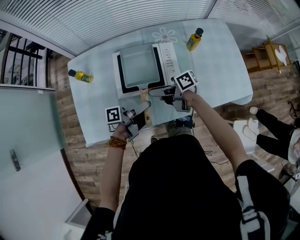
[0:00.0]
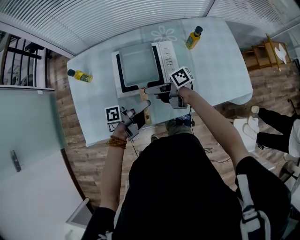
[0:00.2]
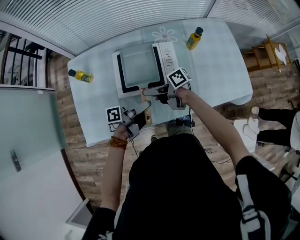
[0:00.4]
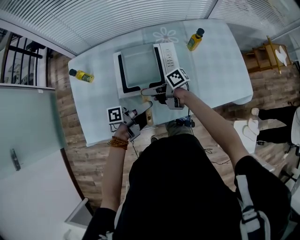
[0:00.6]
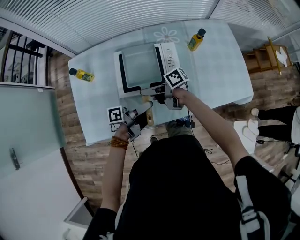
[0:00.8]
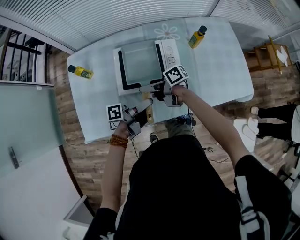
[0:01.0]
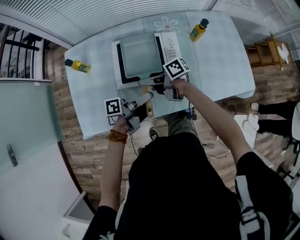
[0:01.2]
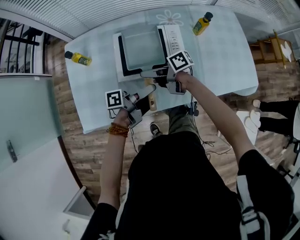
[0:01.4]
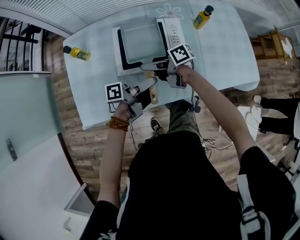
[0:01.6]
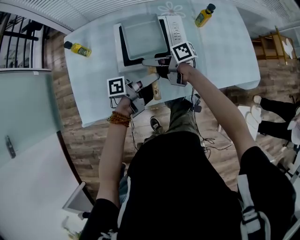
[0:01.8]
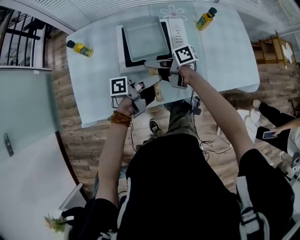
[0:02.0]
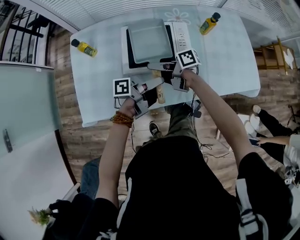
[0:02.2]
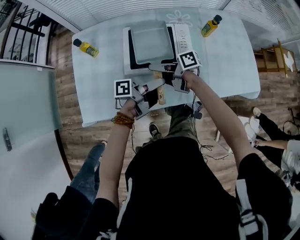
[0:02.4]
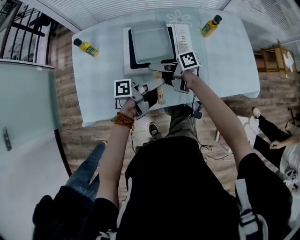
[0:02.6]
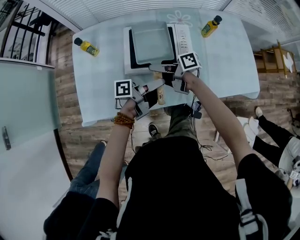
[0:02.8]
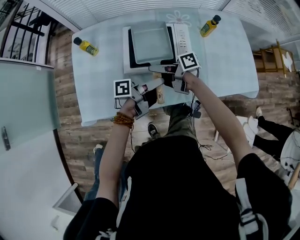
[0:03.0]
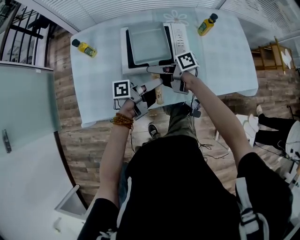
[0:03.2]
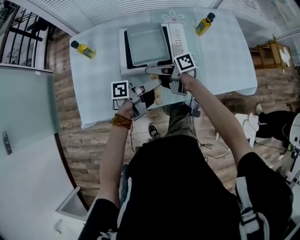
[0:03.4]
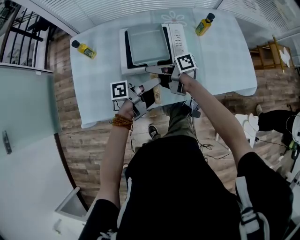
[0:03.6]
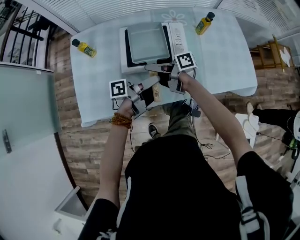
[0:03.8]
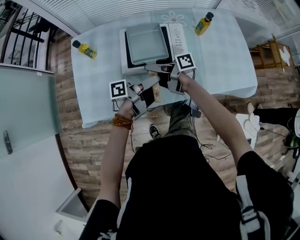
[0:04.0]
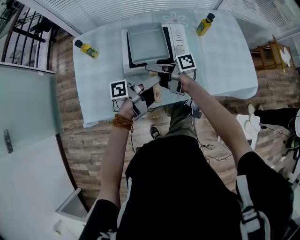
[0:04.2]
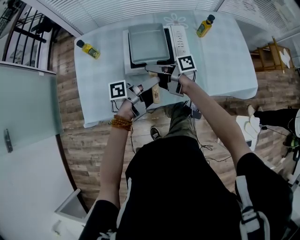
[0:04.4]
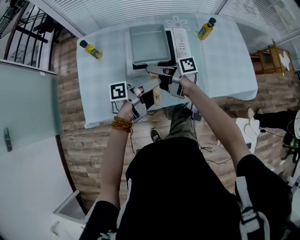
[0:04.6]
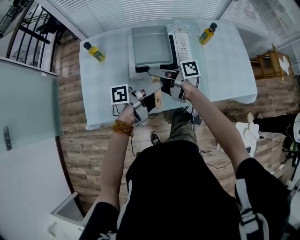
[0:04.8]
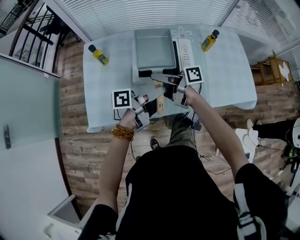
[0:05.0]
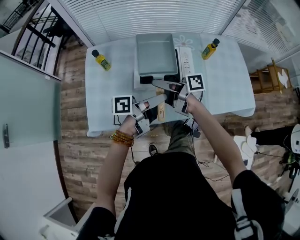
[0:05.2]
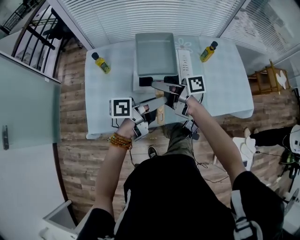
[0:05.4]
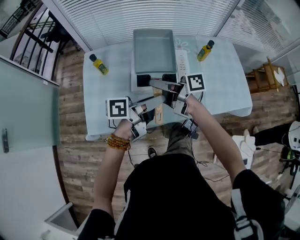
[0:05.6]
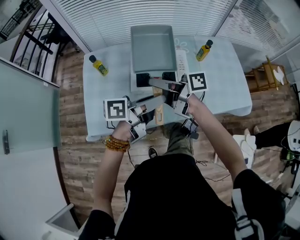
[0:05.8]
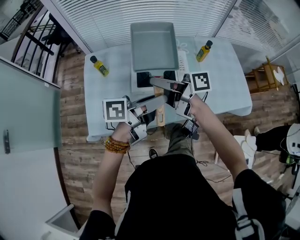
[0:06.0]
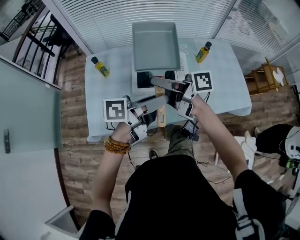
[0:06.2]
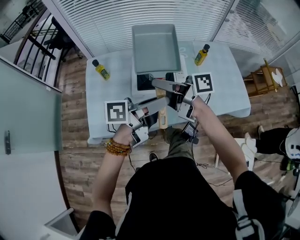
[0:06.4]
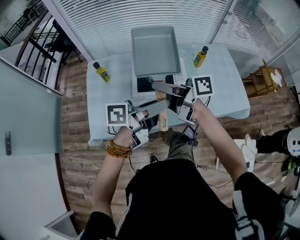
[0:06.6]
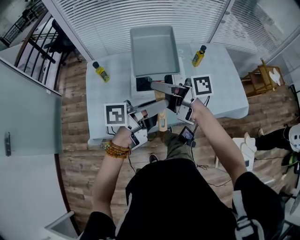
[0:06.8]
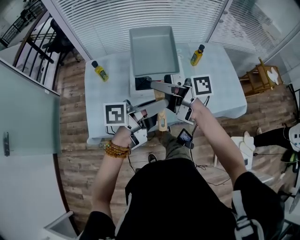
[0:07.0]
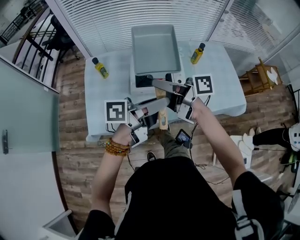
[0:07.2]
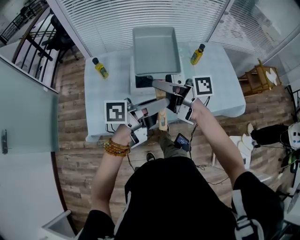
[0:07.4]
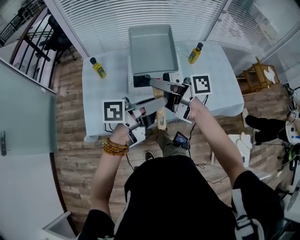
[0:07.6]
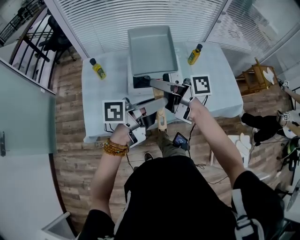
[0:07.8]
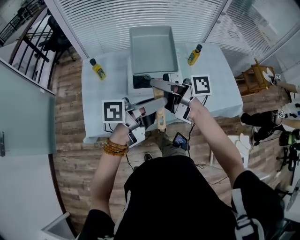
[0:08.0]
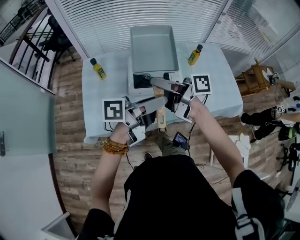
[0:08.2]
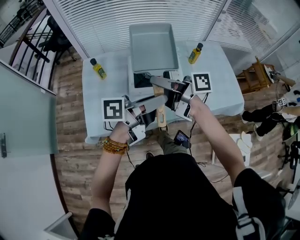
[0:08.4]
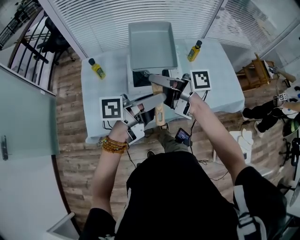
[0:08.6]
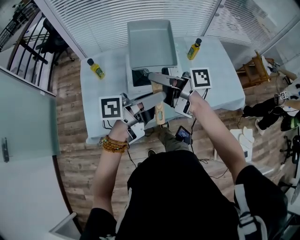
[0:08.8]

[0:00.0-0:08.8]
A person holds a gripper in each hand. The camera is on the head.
0:00.0 to 0:01.4: The right gripper changes place by about 5 cm.
0:01.4 to 0:04.4: The grippers make only small movements.
0:04.4 to 0:05.8: The grippers both shift upward by roughly 15 cm.
0:05.8 to 0:07.4: Both grippers travel together upward, approximately 5 cm.
0:07.4 to 0:08.8: Neither gripper changes place.

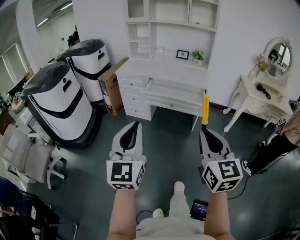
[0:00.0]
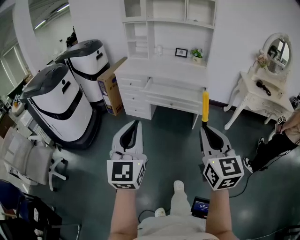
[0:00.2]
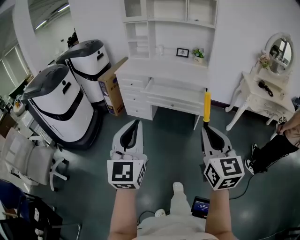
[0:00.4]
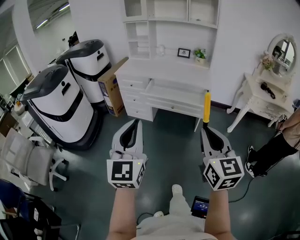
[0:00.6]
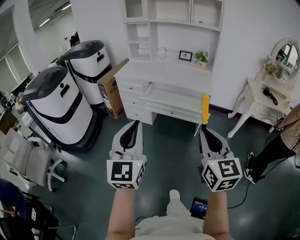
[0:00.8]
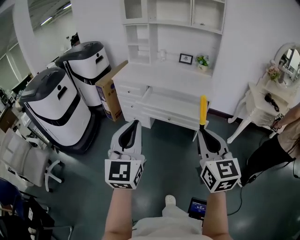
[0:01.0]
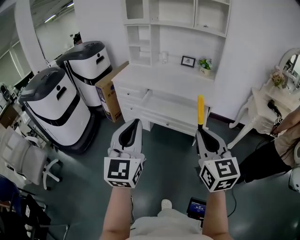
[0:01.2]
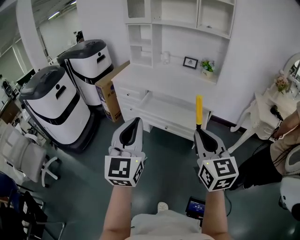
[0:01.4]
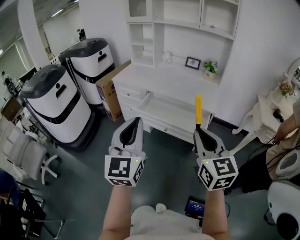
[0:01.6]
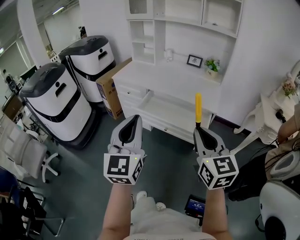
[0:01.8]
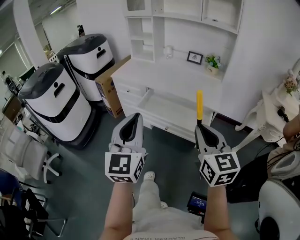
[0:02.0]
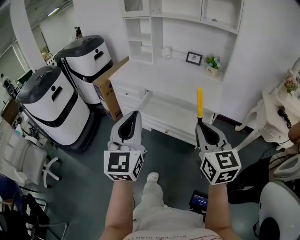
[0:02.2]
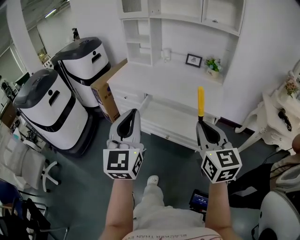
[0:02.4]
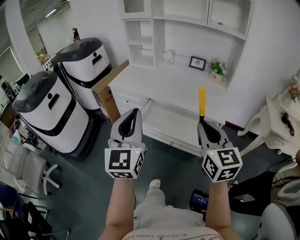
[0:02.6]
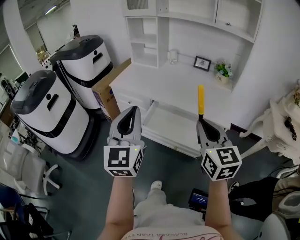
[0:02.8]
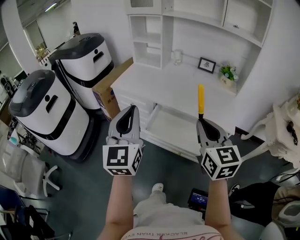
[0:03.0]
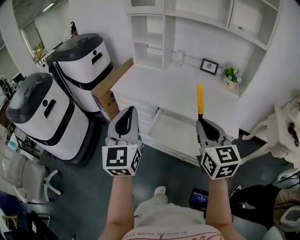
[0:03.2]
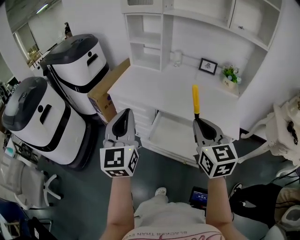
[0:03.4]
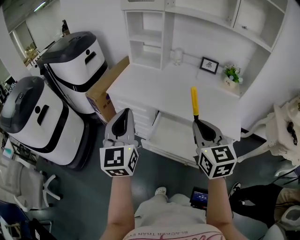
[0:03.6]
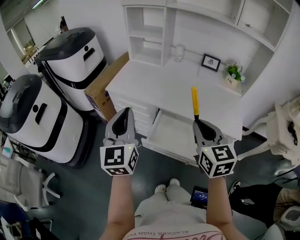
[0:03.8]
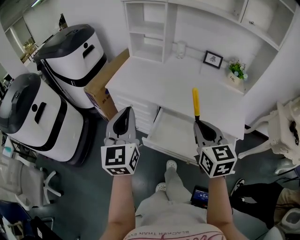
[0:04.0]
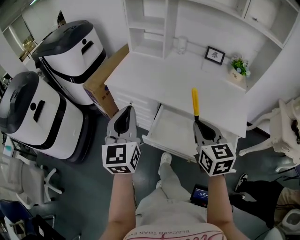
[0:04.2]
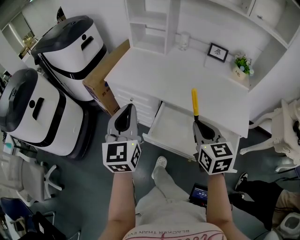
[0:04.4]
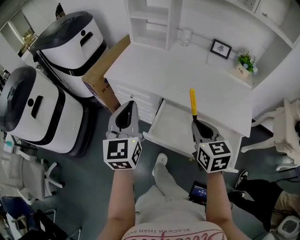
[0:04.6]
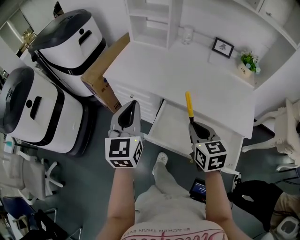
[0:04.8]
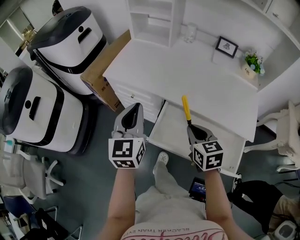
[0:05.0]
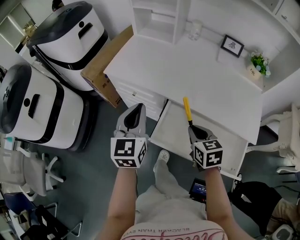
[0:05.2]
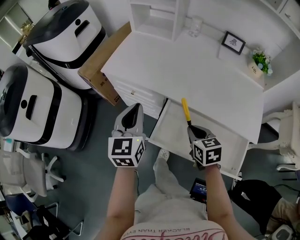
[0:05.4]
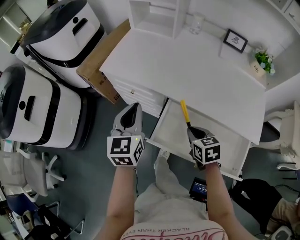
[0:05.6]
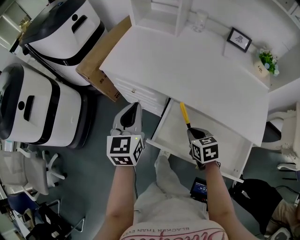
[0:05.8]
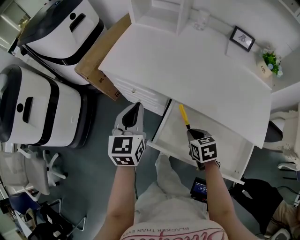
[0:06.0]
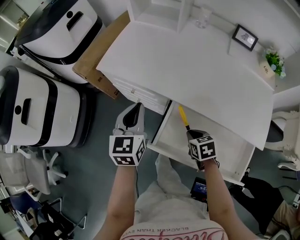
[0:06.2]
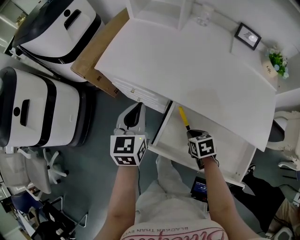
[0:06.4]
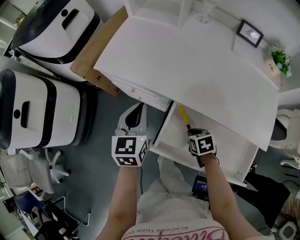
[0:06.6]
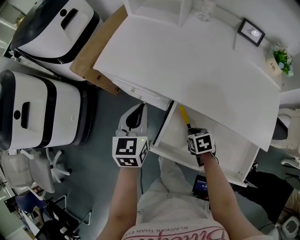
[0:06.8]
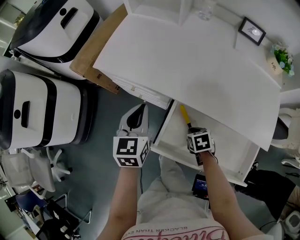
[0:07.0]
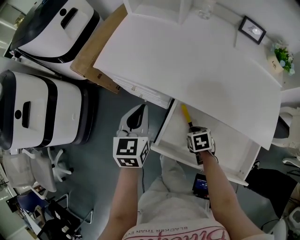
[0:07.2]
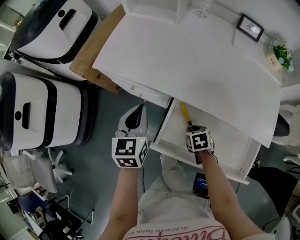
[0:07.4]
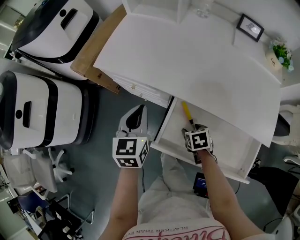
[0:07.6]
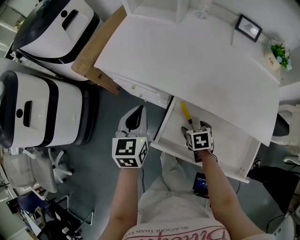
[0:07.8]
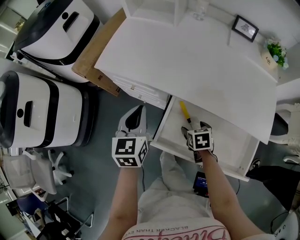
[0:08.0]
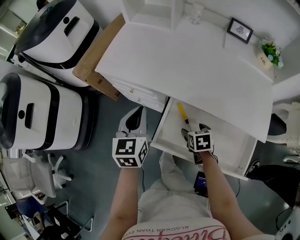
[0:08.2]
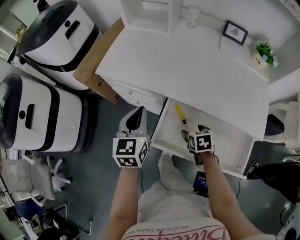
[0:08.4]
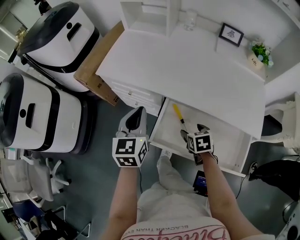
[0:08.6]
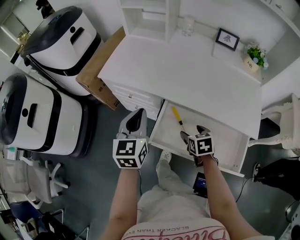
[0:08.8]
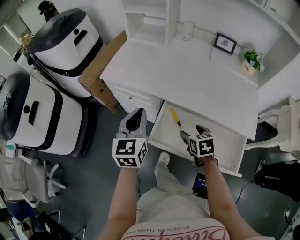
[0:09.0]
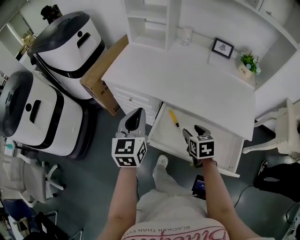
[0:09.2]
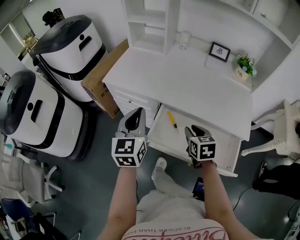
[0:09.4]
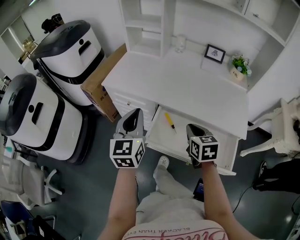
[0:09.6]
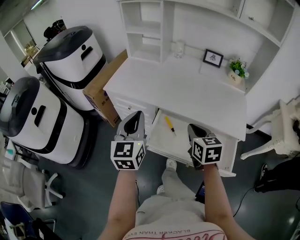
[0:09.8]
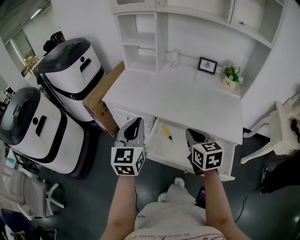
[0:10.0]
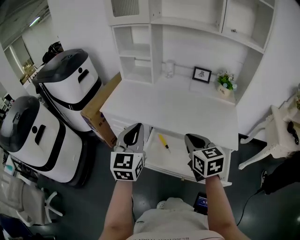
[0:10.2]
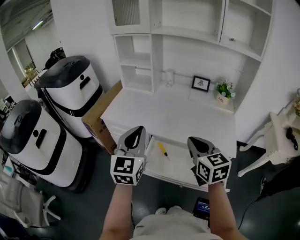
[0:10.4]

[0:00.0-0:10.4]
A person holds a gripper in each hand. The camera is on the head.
0:00.0 to 0:01.4: The left gripper heads forward and to the right, covering some 25 cm, while the right gripper travels forward by some 25 cm.
0:01.4 to 0:03.0: The two grippers go about 30 cm forward.
0:03.0 to 0:04.4: The grippers both shift forward and downward by roughly 20 cm.
0:04.4 to 0:06.0: The left gripper travels downward and forward by roughly 20 cm; the right gripper travels downward by some 25 cm, and angles its fingers downward, by about 30 degrees.
0:06.0 to 0:07.4: The left gripper changes place by some 5 cm; the right gripper goes roughly 10 cm downward.
0:07.4 to 0:09.0: The left gripper shifts some 10 cm upward and backward, while the right gripper shifts about 15 cm upward, turns by some 20 degrees, and opens.
0:09.0 to 0:10.4: The right gripper shifts approximately 25 cm upward, points its fingers about 30 degrees further upward, and closes its fingers. Meanwhile the left gripper goes some 15 cm upward.

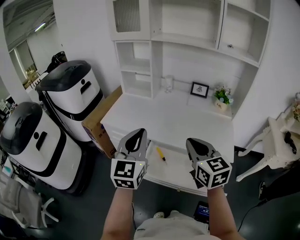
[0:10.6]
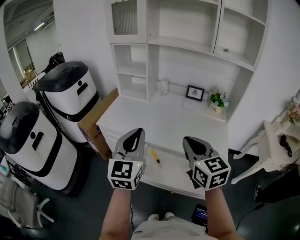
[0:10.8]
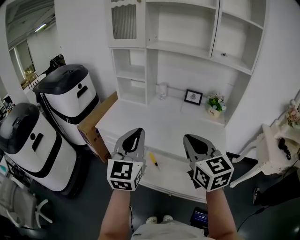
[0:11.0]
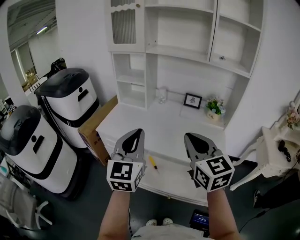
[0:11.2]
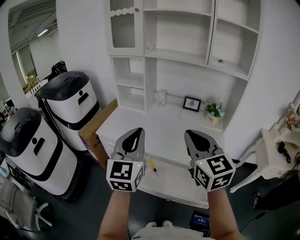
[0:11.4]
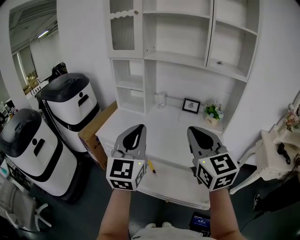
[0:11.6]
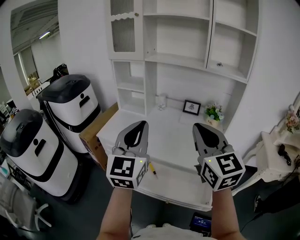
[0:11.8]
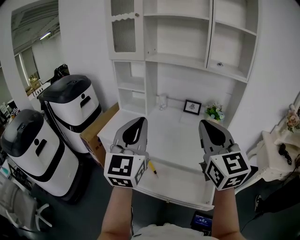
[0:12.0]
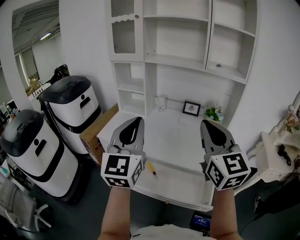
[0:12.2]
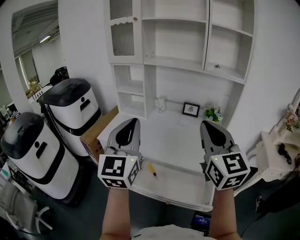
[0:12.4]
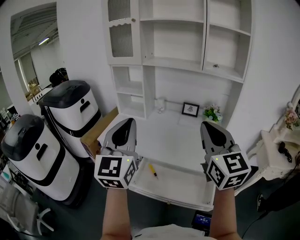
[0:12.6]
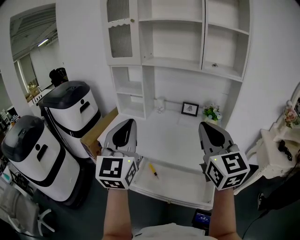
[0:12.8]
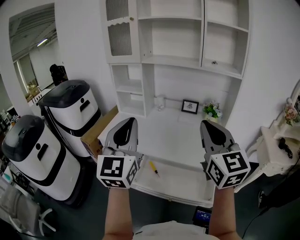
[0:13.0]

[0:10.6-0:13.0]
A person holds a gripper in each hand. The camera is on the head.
0:10.6 to 0:11.8: The left gripper goes some 15 cm upward and to the right. Meanwhile the right gripper moves upward, roughly 15 cm, and changes its angle by some 20 degrees.
0:11.8 to 0:13.0: There are only small adjustments of the grippers.

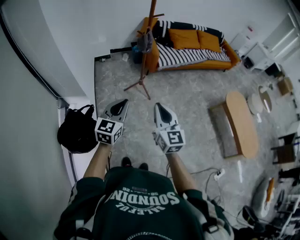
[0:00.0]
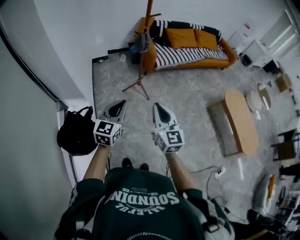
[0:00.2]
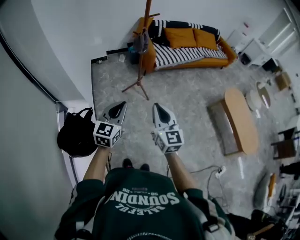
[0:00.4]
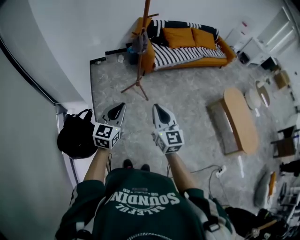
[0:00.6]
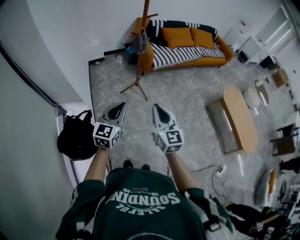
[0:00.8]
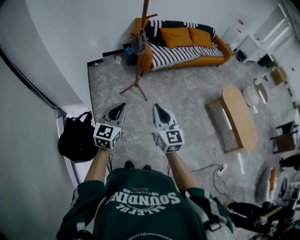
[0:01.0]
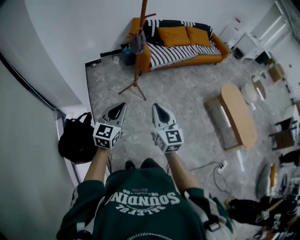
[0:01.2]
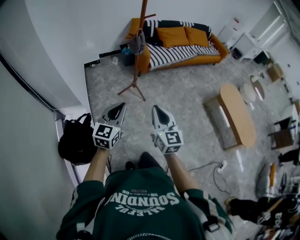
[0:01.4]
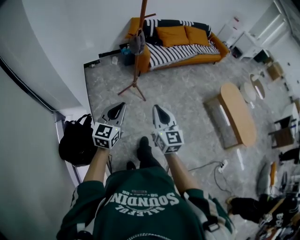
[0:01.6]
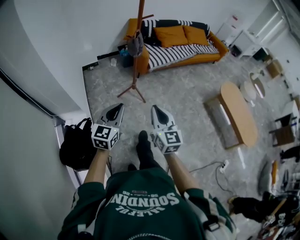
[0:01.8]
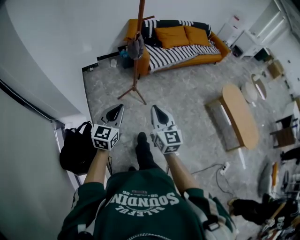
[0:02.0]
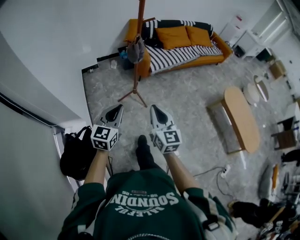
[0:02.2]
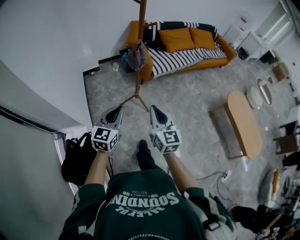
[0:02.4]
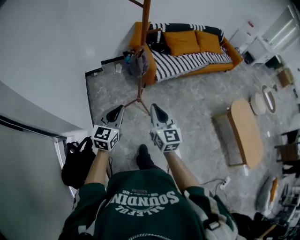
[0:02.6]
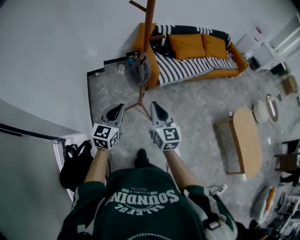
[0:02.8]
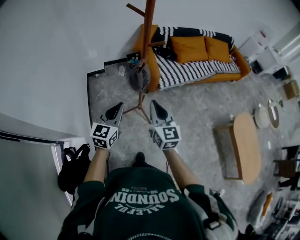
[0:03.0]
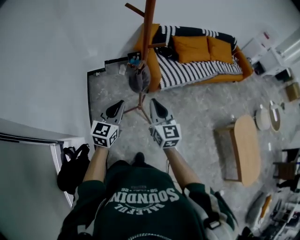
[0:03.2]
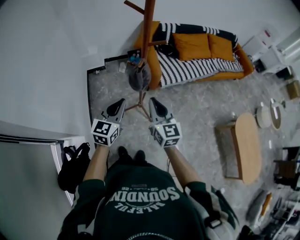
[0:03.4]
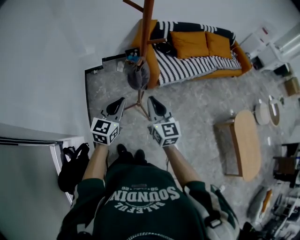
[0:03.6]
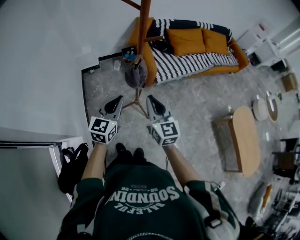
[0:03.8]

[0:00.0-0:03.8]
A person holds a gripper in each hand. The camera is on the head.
0:00.0 to 0:01.2: The grippers make only small movements.
0:01.2 to 0:02.6: The grippers both shift forward by roughly 30 cm.
0:02.6 to 0:03.8: The two grippers go about 15 cm forward.
